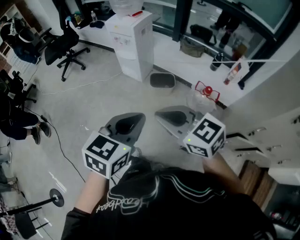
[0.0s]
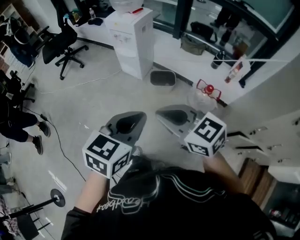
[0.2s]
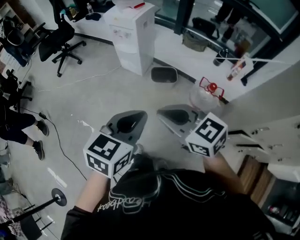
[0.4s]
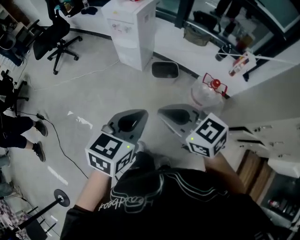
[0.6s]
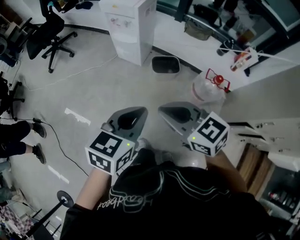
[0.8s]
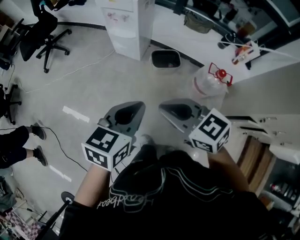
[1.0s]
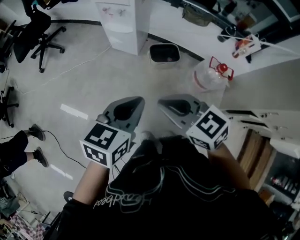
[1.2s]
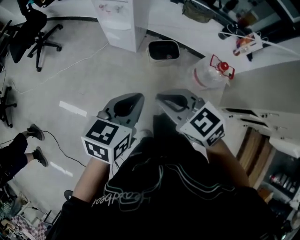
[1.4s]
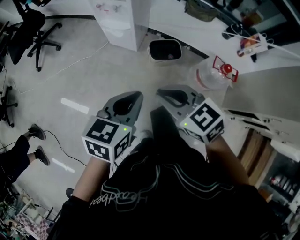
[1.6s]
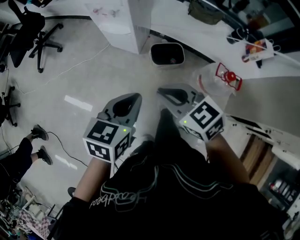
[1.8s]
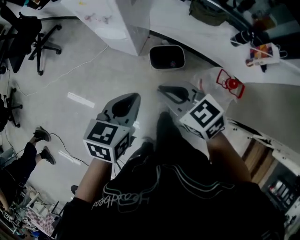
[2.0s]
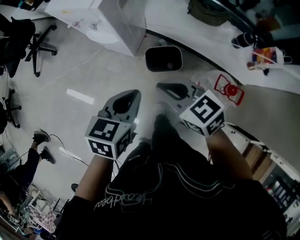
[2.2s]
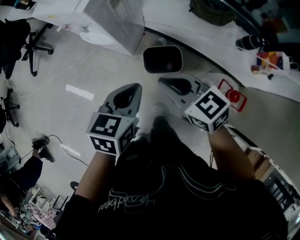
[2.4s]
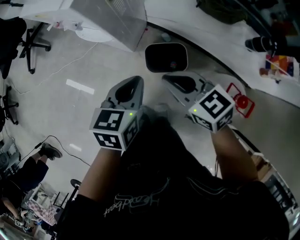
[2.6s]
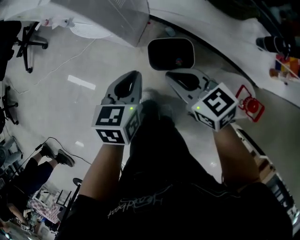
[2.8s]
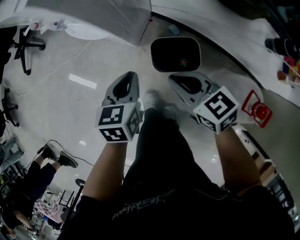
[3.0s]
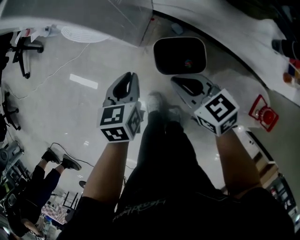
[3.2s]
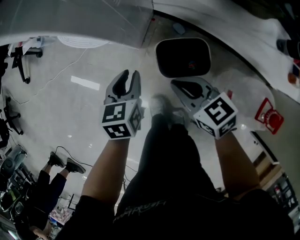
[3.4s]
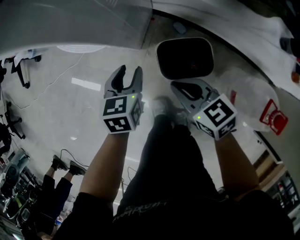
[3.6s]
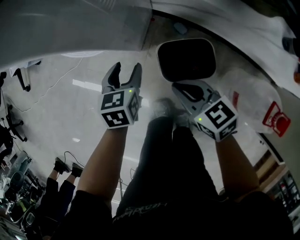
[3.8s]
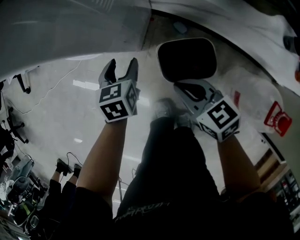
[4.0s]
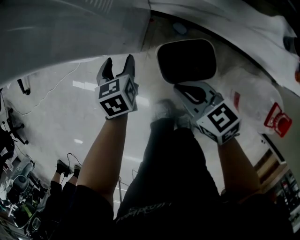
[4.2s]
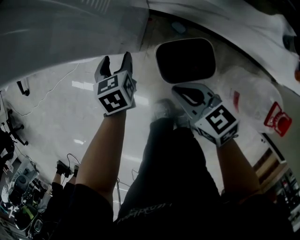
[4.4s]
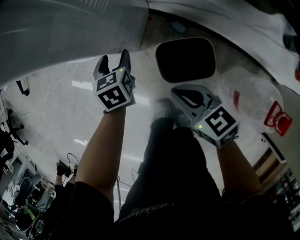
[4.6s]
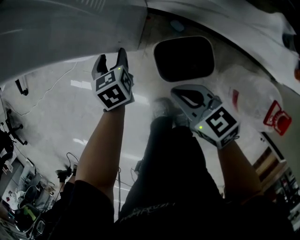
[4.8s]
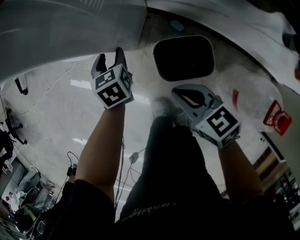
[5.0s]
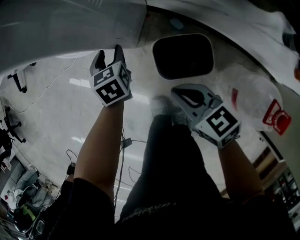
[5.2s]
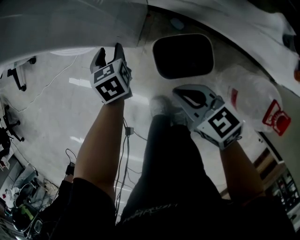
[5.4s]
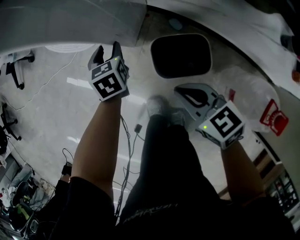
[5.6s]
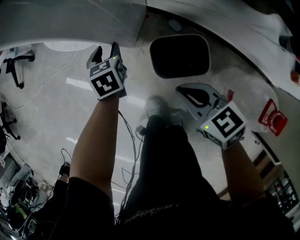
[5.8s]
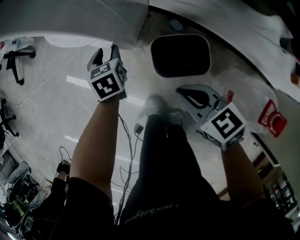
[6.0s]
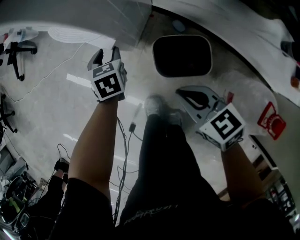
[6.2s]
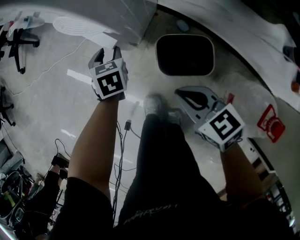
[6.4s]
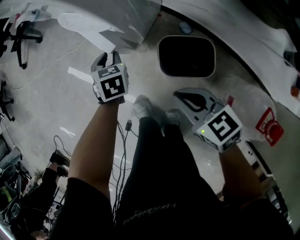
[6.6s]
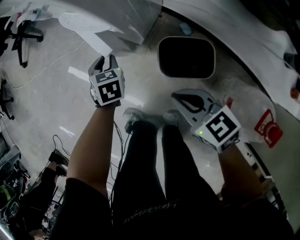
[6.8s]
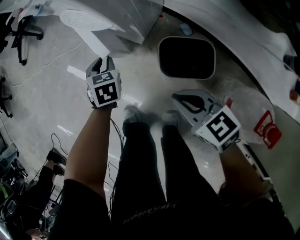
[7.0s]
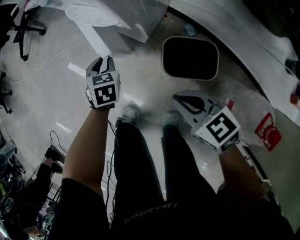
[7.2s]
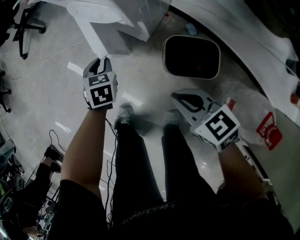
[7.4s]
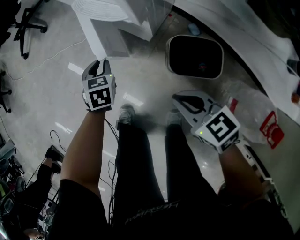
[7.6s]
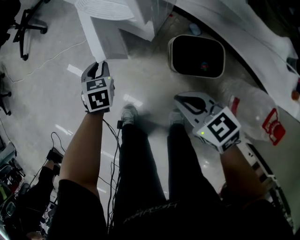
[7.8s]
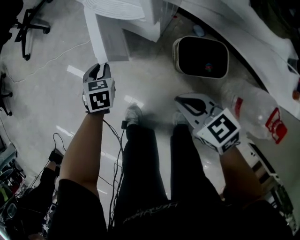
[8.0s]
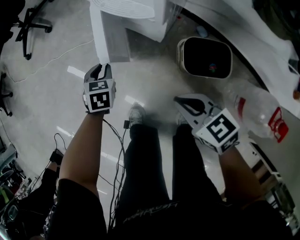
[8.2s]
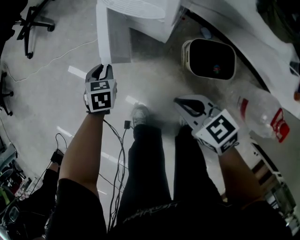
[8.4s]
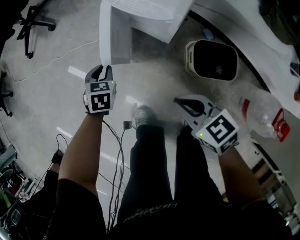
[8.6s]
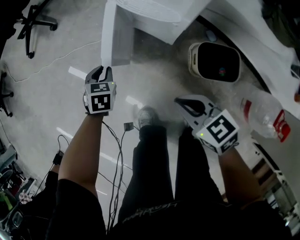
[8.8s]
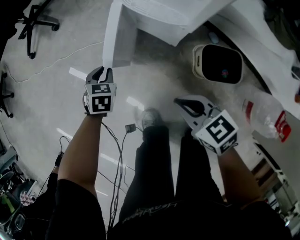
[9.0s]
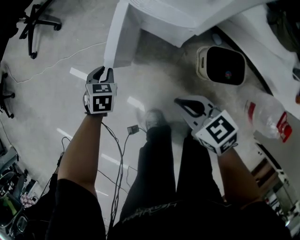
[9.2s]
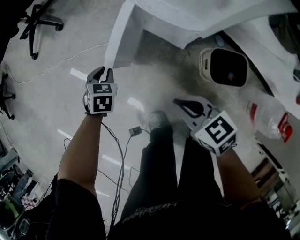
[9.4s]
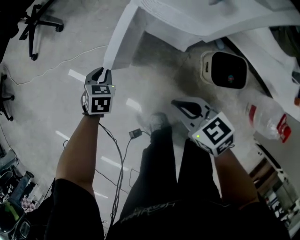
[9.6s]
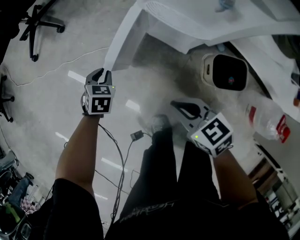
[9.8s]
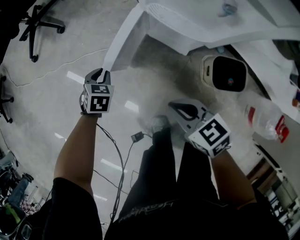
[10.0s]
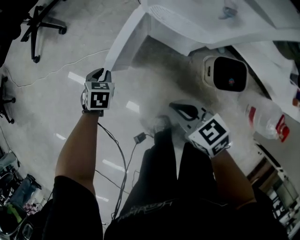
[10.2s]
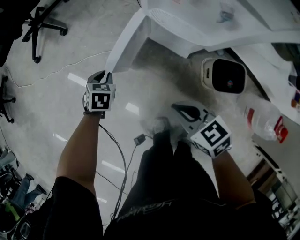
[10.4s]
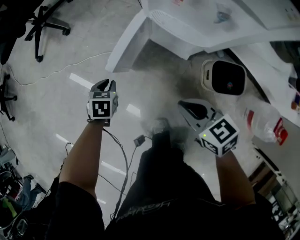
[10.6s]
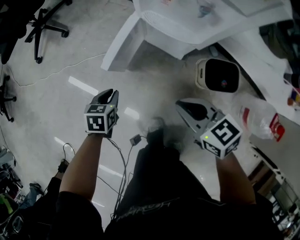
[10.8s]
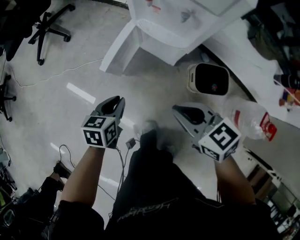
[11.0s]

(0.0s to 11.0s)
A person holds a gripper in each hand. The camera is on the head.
0.0s - 1.6s: Both grippers travel together forward, downward and to the left, roughly 30 cm.
1.6s - 3.2s: The left gripper moves downward and forward, some 50 cm, and turns by some 30 degrees, while the right gripper shifts roughly 50 cm downward, forward and to the right.
3.2s - 4.8s: The left gripper heads forward and downward, covering approximately 20 cm, and opens its fingers. Meanwhile the right gripper moves downward, some 5 cm.
4.8s - 6.2s: The right gripper ends up roughly 5 cm from where it was.
6.2s - 7.8s: The left gripper shifts approximately 15 cm to the left, and closes its fingers. The right gripper travels to the left by some 10 cm.
7.8s - 9.4s: Both grippers move to the left and forward, about 20 cm.
9.4s - 11.0s: The right gripper goes approximately 15 cm upward; the left gripper goes approximately 20 cm upward and backward, and changes its angle by some 30 degrees.

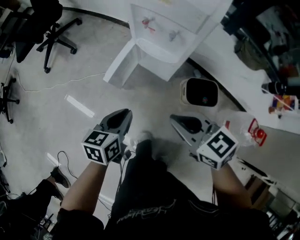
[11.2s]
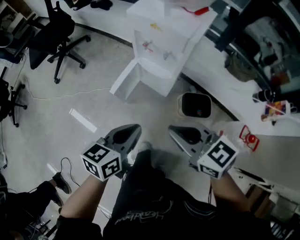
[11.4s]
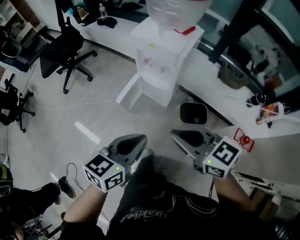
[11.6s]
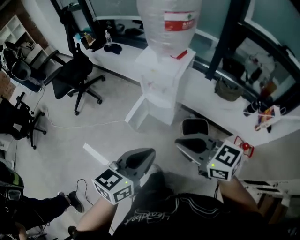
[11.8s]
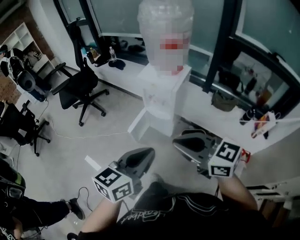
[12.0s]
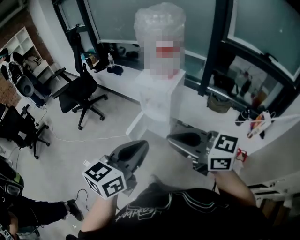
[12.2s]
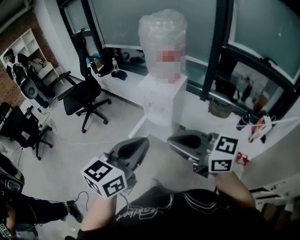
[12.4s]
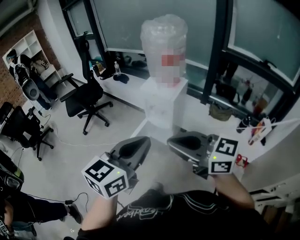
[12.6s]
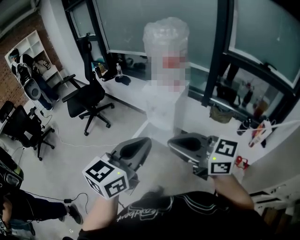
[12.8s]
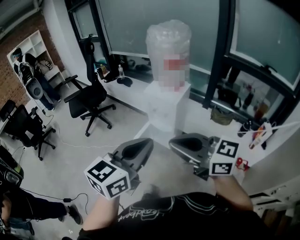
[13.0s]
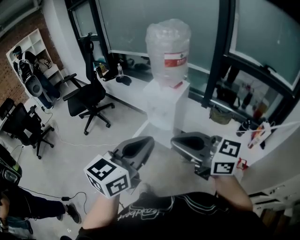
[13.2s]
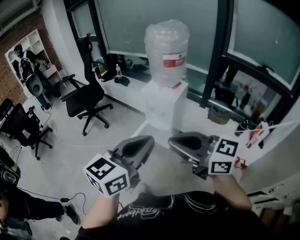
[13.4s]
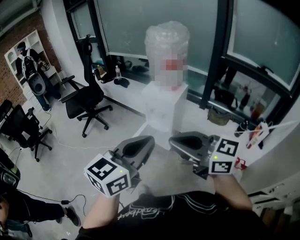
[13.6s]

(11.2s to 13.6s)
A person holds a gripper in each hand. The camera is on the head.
11.2s - 12.4s: Both grippers travel together upward and backward, approximately 50 cm. The left gripper changes its angle by some 40 degrees. The right gripper swivels roughly 30 degrees.
12.4s - 13.6s: The grippers stay close to where they were, moving slightly.

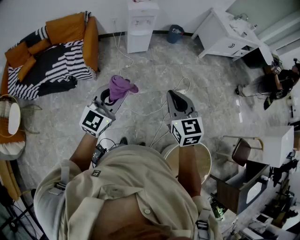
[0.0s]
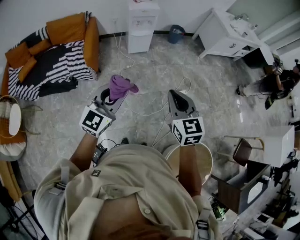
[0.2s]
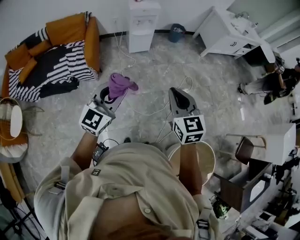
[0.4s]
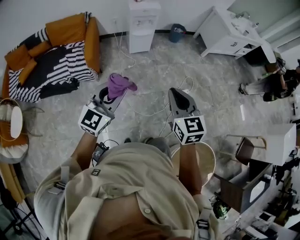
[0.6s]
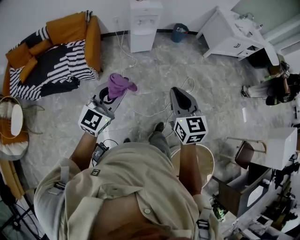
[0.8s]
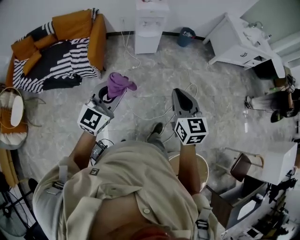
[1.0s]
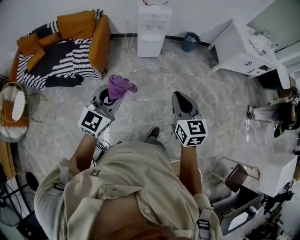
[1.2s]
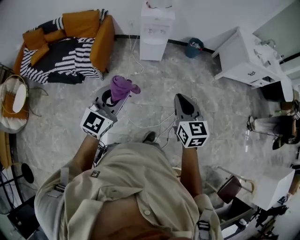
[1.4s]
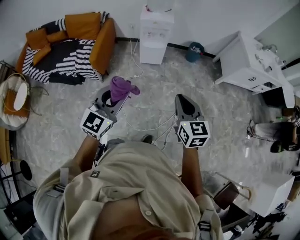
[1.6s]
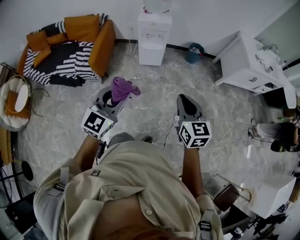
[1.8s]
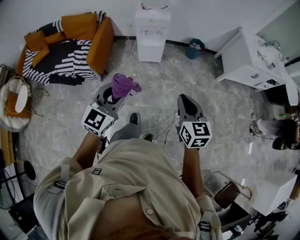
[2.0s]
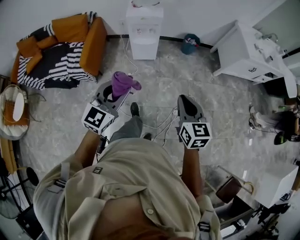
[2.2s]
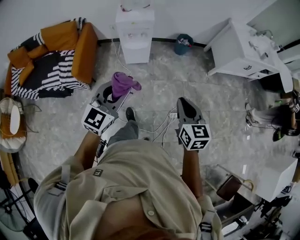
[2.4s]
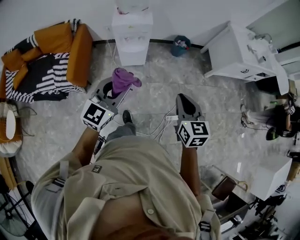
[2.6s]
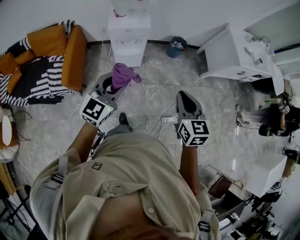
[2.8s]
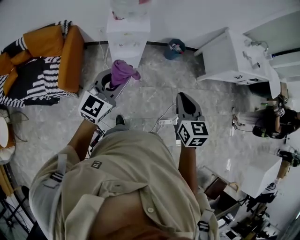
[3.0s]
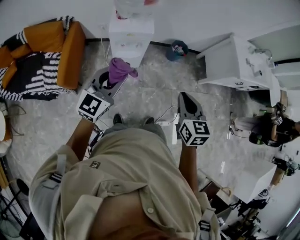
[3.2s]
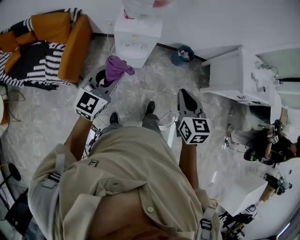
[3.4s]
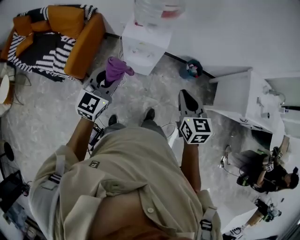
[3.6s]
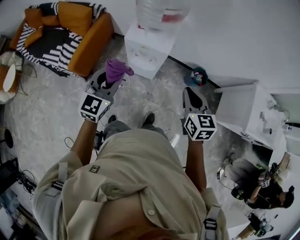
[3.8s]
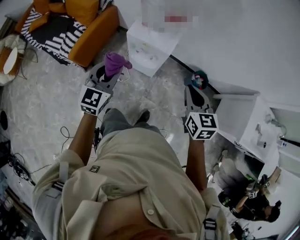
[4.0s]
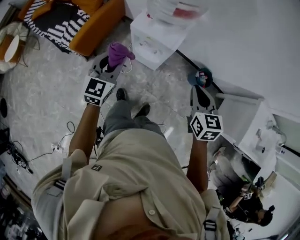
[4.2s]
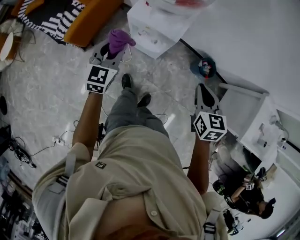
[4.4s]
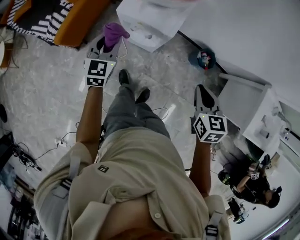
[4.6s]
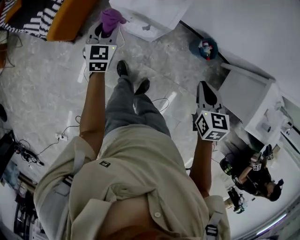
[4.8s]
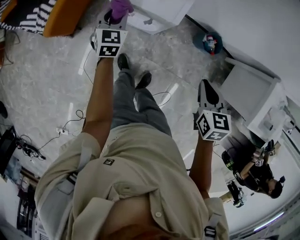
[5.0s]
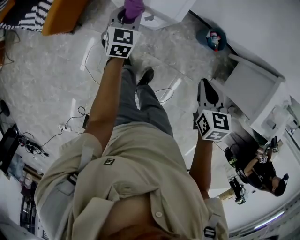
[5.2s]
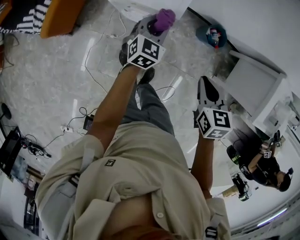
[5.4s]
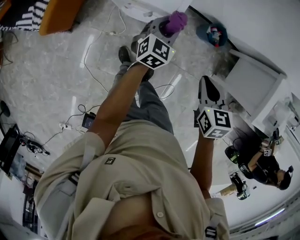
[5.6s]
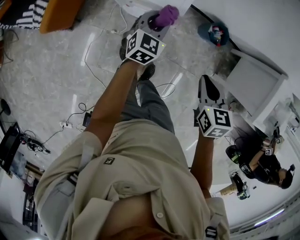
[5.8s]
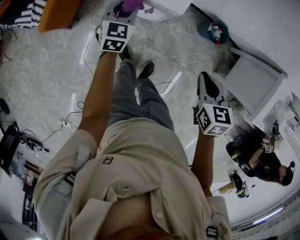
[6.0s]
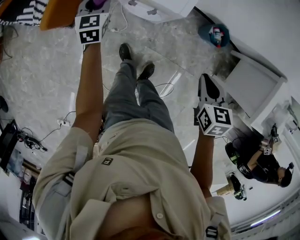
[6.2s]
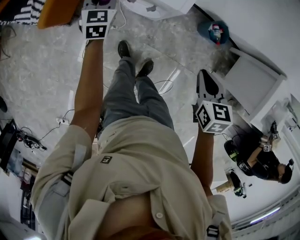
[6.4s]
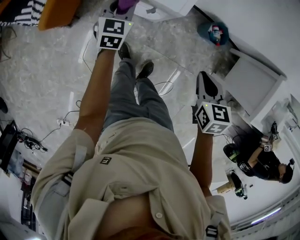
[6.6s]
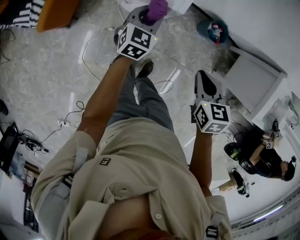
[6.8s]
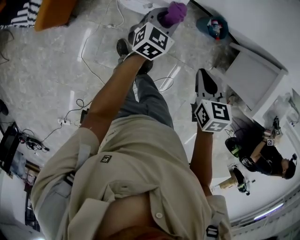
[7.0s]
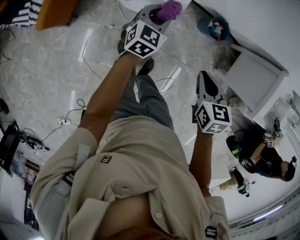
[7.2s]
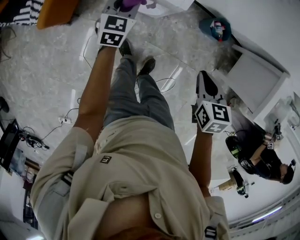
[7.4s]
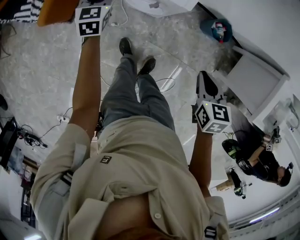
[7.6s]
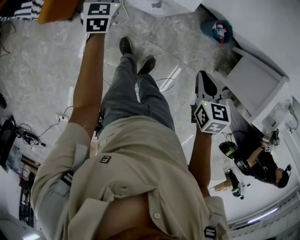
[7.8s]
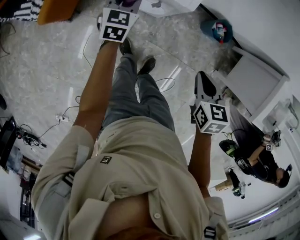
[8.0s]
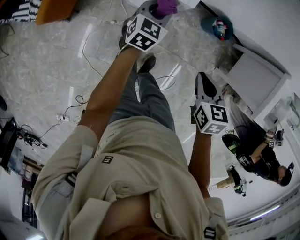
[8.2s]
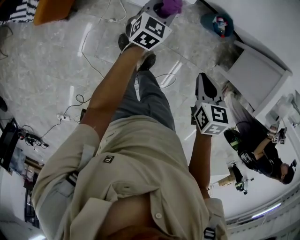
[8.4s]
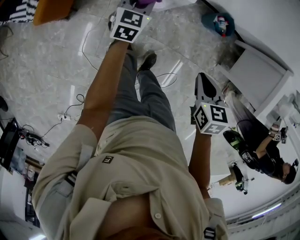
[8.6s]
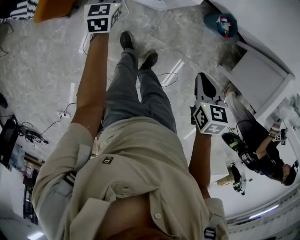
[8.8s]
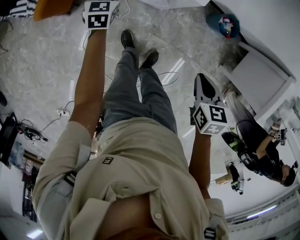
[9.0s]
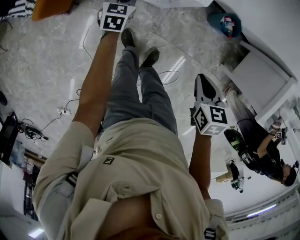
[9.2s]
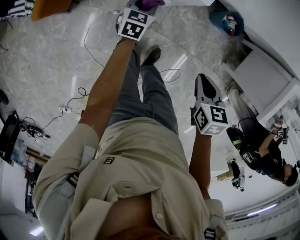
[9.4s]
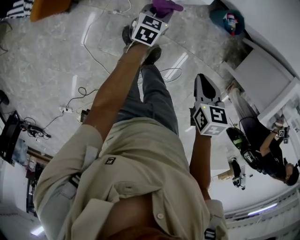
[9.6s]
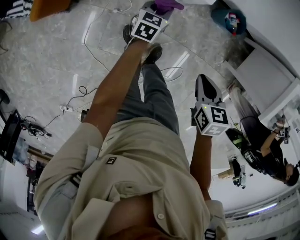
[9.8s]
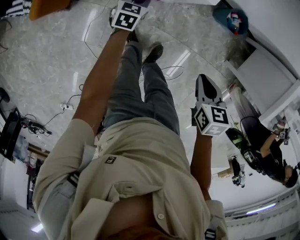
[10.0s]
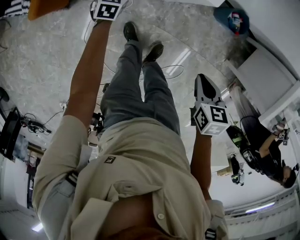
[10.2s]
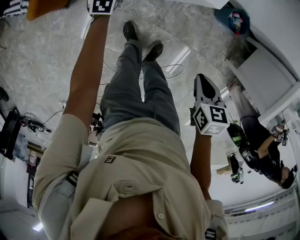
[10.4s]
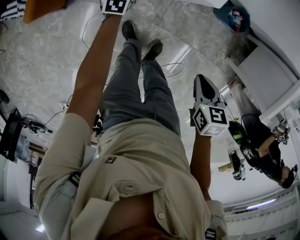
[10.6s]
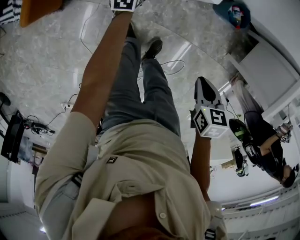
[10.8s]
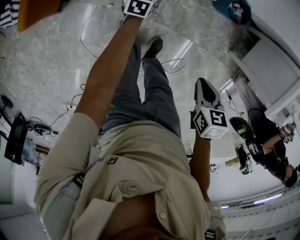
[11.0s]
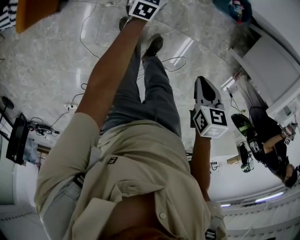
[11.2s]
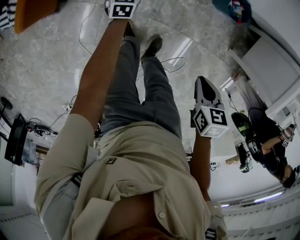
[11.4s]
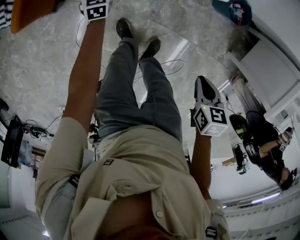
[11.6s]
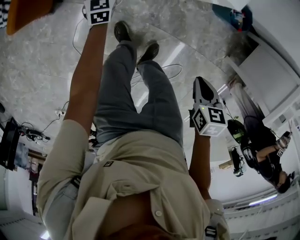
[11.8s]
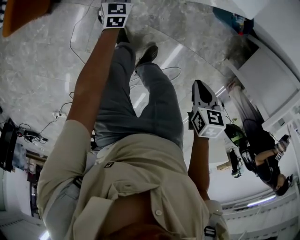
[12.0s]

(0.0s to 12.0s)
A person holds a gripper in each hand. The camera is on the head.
0.0s - 1.6s: The grippers both shift forward and to the right by approximately 25 cm.
1.6s - 3.0s: Both grippers move forward, approximately 35 cm.
3.0s - 4.4s: The right gripper ends up roughly 40 cm from where it was, and rotates approximately 30 degrees. The left gripper moves approximately 30 cm, and swivels approximately 50 degrees.
4.4s - 6.0s: The left gripper is displaced downward and forward by roughly 25 cm, and goes to the right and returns, roughly 25 cm each way. Meanwhile the right gripper shifts roughly 15 cm downward.
6.0s - 7.6s: The left gripper goes left and right, some 30 cm each way, reversing 2 times.
7.6s - 9.0s: The right gripper shifts approximately 5 cm downward, while the left gripper goes about 10 cm downward, and reaches some 25 cm to the right, then returns.
9.0s - 10.4s: The left gripper heads downward, covering about 10 cm, and travels to the right and back again, some 20 cm each way. The right gripper travels downward by some 5 cm.
10.4s - 12.0s: The right gripper heads downward, covering about 15 cm. The left gripper goes left and right, some 20 cm each way, reversing 2 times.
